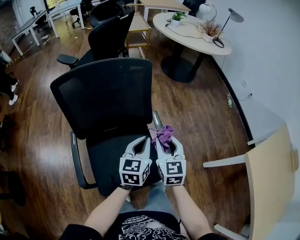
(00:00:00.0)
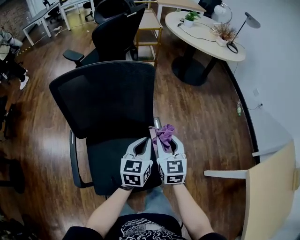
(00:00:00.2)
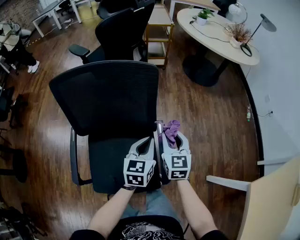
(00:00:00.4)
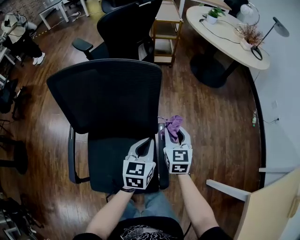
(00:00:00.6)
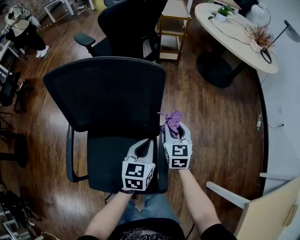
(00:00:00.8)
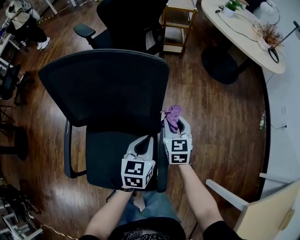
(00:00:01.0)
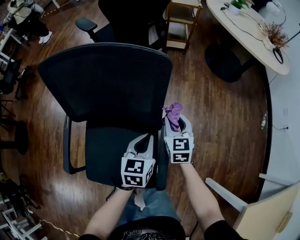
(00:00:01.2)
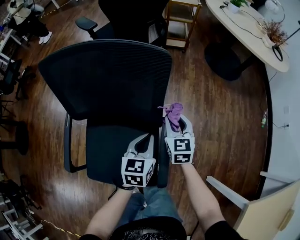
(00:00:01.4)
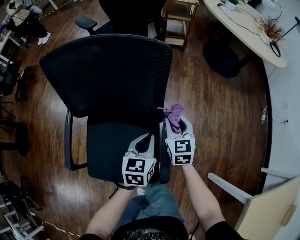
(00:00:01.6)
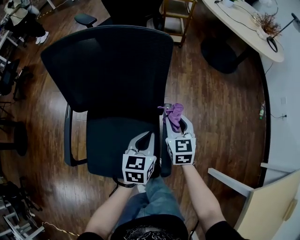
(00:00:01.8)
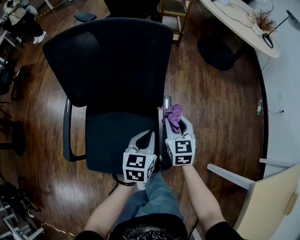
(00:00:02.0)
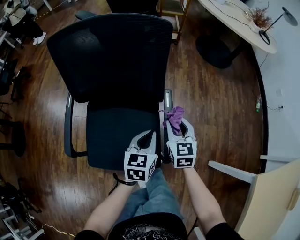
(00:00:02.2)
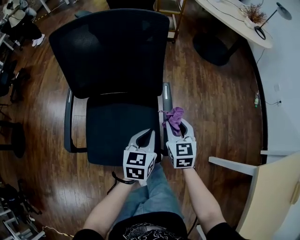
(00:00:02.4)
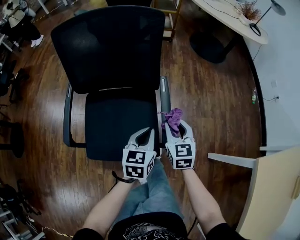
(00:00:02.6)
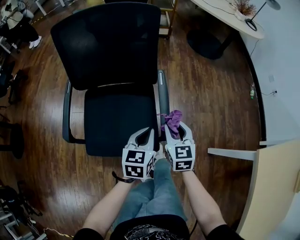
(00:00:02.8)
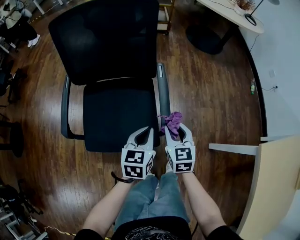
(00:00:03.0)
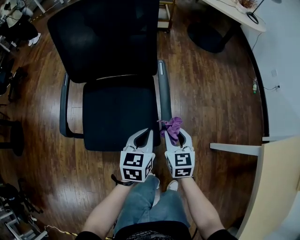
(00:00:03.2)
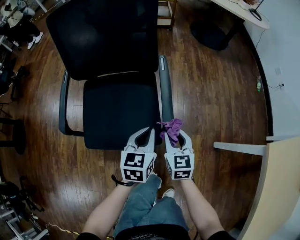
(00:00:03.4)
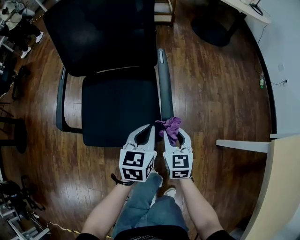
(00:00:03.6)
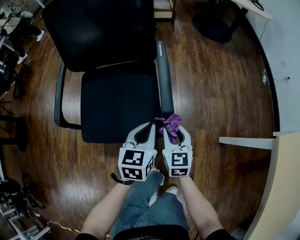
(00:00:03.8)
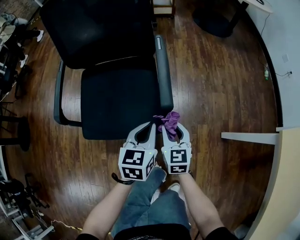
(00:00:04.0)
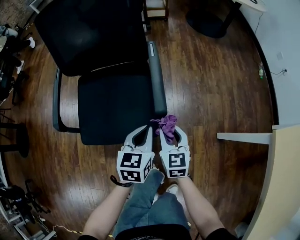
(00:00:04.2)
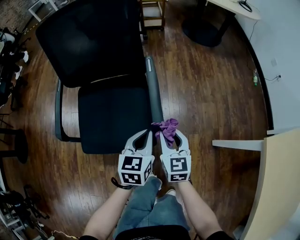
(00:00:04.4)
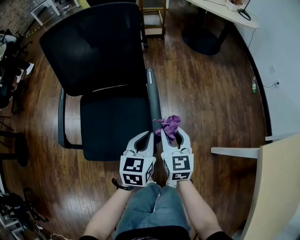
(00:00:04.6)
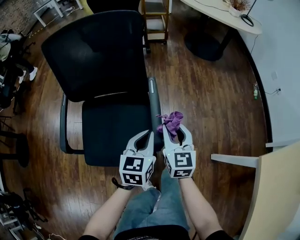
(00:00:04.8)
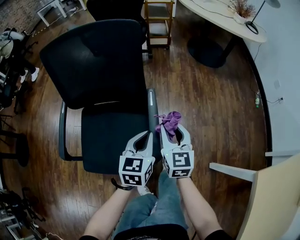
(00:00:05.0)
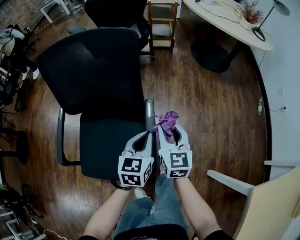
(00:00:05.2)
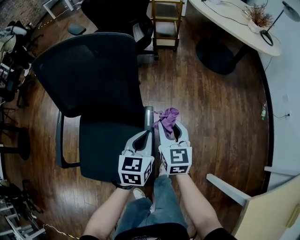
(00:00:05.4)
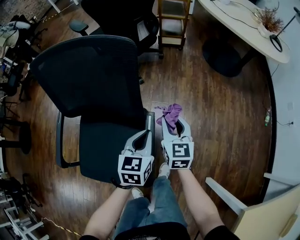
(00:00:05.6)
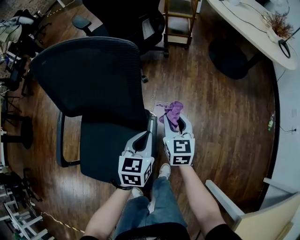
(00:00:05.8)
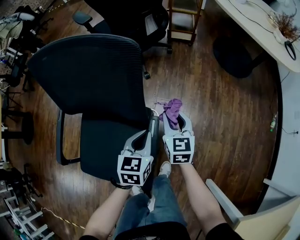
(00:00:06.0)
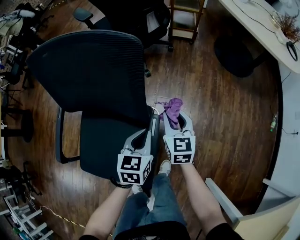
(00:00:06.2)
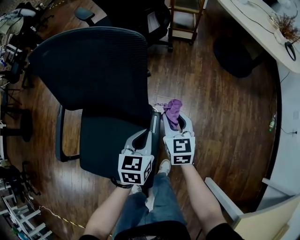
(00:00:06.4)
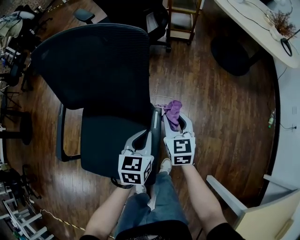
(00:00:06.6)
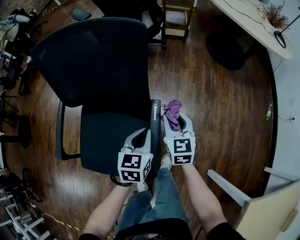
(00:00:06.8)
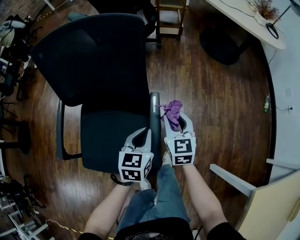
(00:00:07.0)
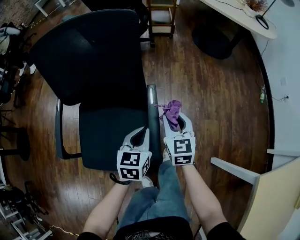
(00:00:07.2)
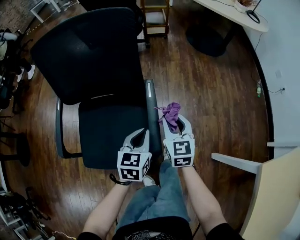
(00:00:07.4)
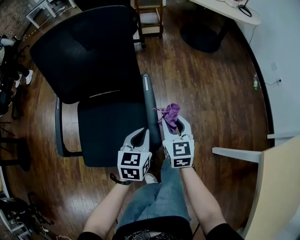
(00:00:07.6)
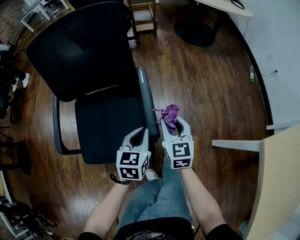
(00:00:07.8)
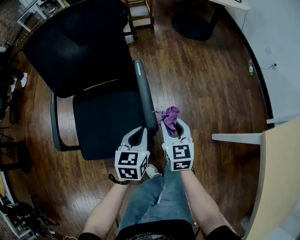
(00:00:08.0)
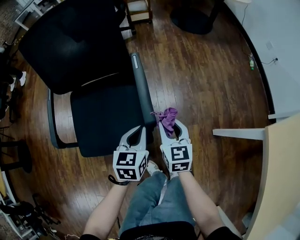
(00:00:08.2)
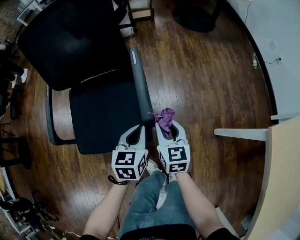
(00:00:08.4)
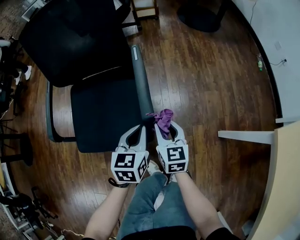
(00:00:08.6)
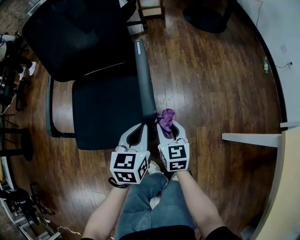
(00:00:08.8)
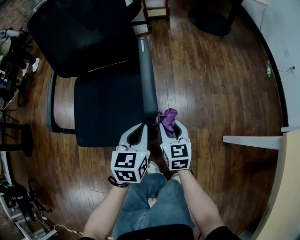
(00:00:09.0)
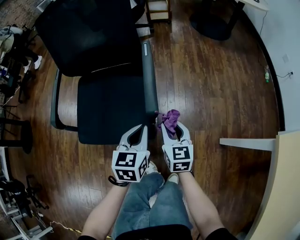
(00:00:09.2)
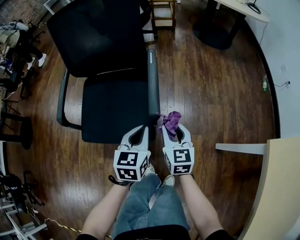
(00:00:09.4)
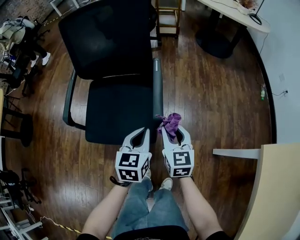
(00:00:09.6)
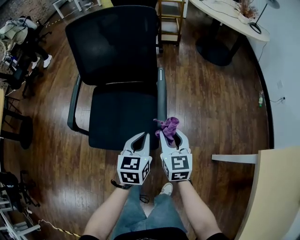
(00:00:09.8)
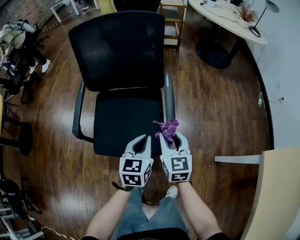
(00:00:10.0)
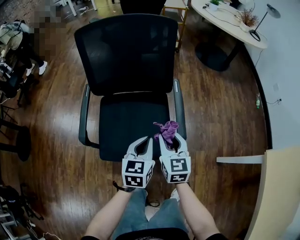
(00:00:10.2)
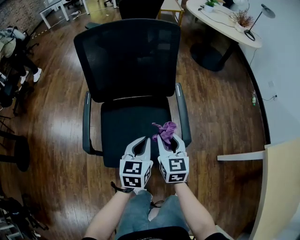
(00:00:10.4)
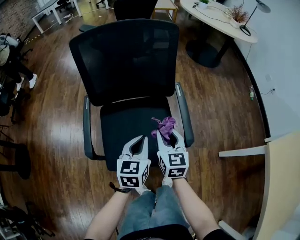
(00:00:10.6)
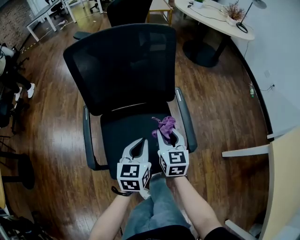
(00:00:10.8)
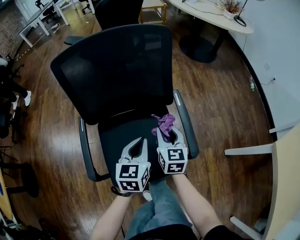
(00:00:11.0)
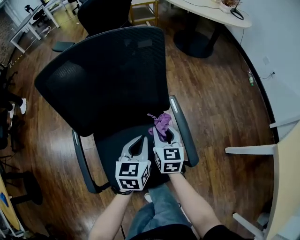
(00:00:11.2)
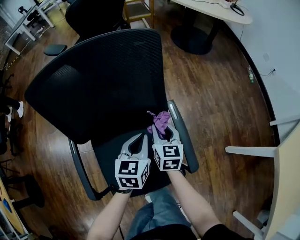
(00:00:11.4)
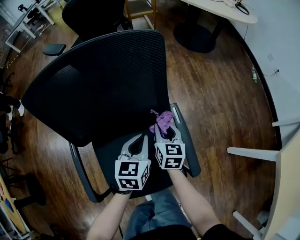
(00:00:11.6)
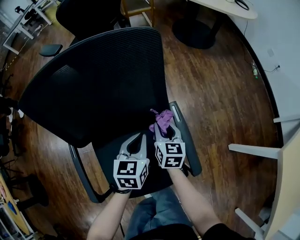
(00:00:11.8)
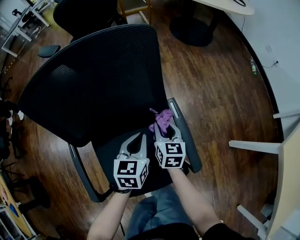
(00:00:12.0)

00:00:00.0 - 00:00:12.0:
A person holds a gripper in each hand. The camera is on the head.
00:00:00.0 - 00:00:01.6: The left gripper is displaced downward and forward by about 15 cm, and rotates roughly 20 degrees. Meanwhile the right gripper shifts approximately 20 cm forward and downward, and rotates about 20 degrees.
00:00:01.6 - 00:00:03.0: The grippers both shift backward by roughly 25 cm.
00:00:03.0 - 00:00:04.4: The right gripper reaches approximately 10 cm downward, then returns.
00:00:04.4 - 00:00:06.0: Both grippers travel together forward, about 35 cm.
00:00:06.0 - 00:00:07.6: Both grippers move backward, some 20 cm.
00:00:07.6 - 00:00:09.0: The right gripper heads downward and backward, covering about 20 cm; the left gripper is displaced backward and downward by approximately 15 cm.
00:00:09.0 - 00:00:10.4: The right gripper travels upward and to the left by about 30 cm. Meanwhile the left gripper is displaced to the left and upward by approximately 25 cm.
00:00:10.4 - 00:00:12.0: The left gripper moves forward, about 20 cm. The right gripper goes some 25 cm forward and downward, and rotates roughly 20 degrees.

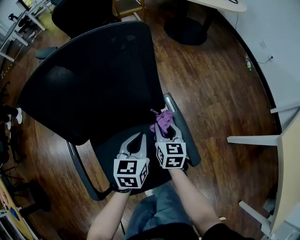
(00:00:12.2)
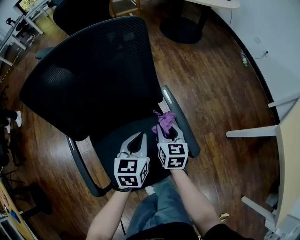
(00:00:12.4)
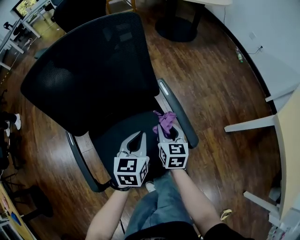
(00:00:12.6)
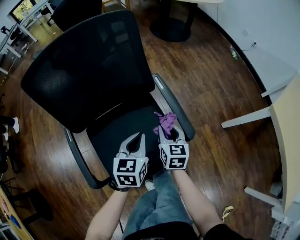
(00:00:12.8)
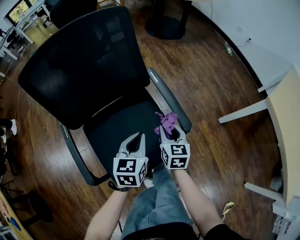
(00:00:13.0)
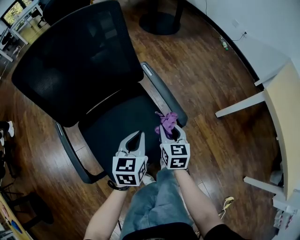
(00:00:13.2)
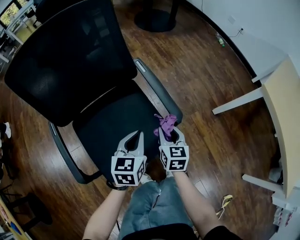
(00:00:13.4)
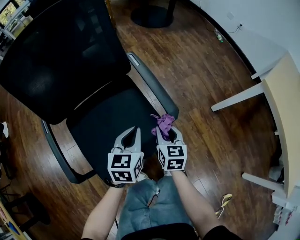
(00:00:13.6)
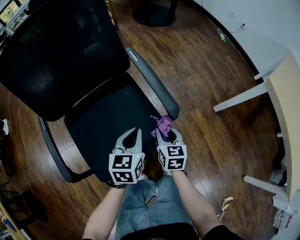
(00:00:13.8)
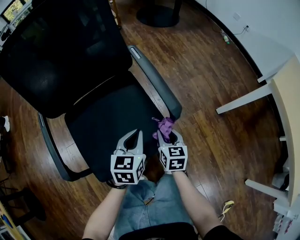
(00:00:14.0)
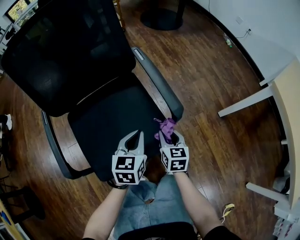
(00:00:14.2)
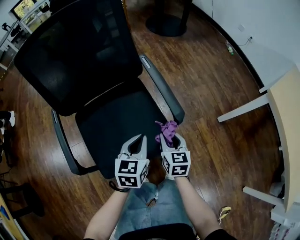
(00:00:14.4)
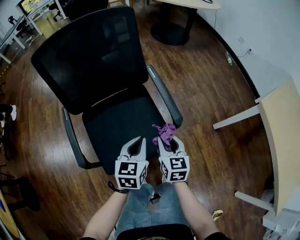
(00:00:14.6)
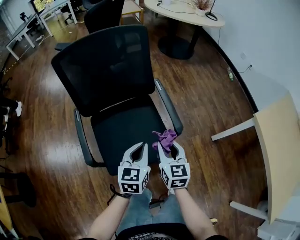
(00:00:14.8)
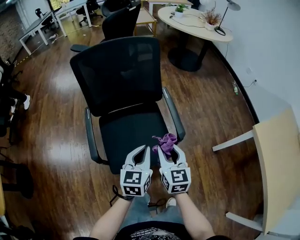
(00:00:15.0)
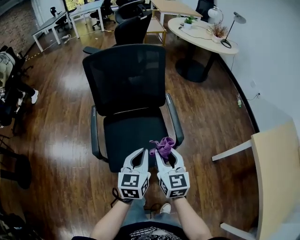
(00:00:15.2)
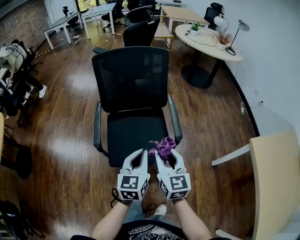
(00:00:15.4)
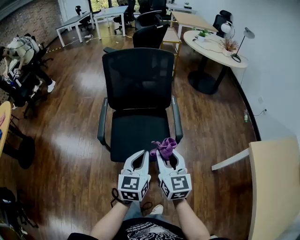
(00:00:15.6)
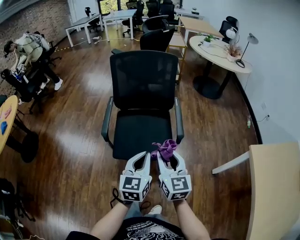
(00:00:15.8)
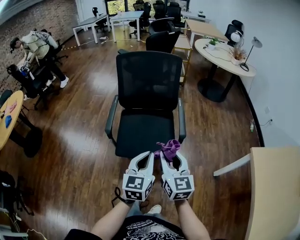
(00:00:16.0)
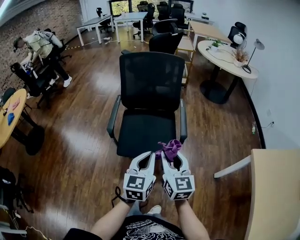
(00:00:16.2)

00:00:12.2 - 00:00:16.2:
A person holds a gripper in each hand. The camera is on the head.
00:00:12.2 - 00:00:13.6: The grippers both shift backward and to the right by some 20 cm.
00:00:13.6 - 00:00:14.8: The right gripper moves upward, some 20 cm; the left gripper moves upward and backward, roughly 15 cm.
00:00:14.8 - 00:00:16.2: The right gripper moves upward and backward, some 30 cm, and changes its angle by approximately 30 degrees. Meanwhile the left gripper heads backward and upward, covering roughly 25 cm, and turns by some 30 degrees.

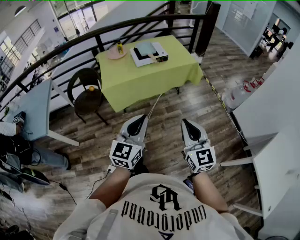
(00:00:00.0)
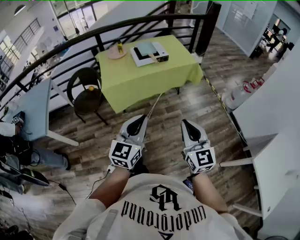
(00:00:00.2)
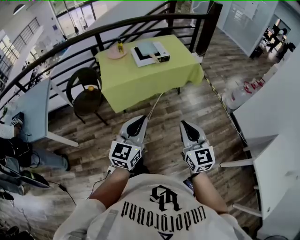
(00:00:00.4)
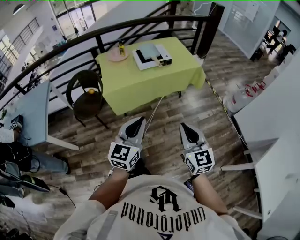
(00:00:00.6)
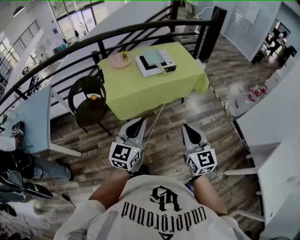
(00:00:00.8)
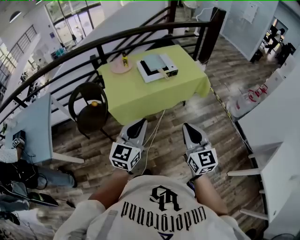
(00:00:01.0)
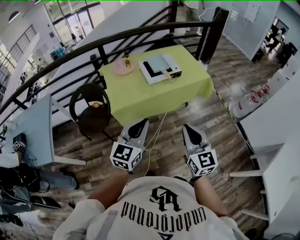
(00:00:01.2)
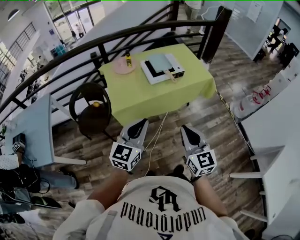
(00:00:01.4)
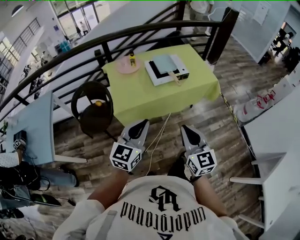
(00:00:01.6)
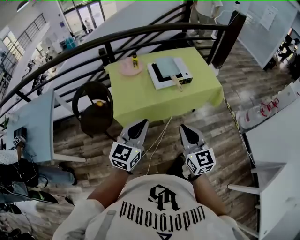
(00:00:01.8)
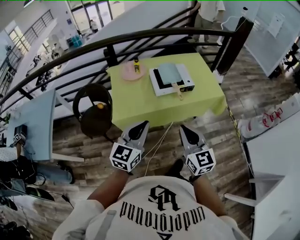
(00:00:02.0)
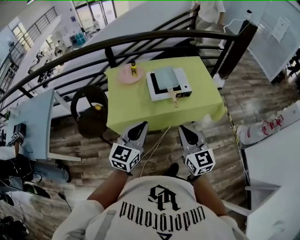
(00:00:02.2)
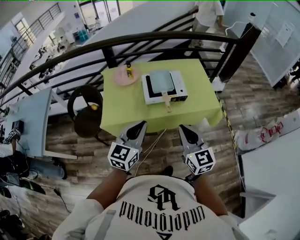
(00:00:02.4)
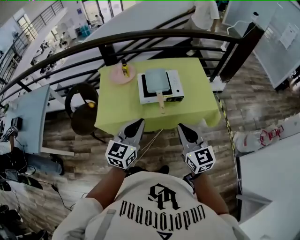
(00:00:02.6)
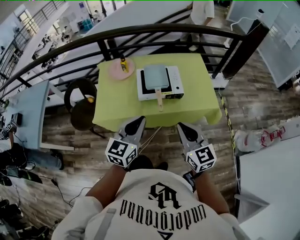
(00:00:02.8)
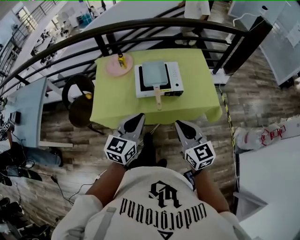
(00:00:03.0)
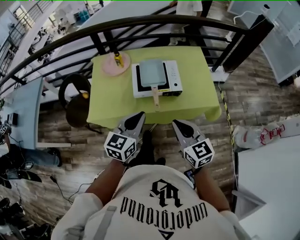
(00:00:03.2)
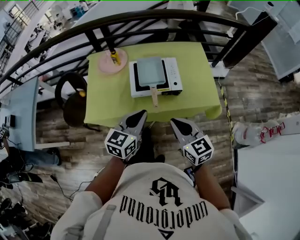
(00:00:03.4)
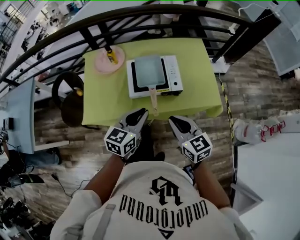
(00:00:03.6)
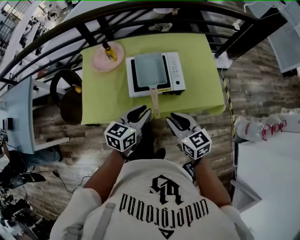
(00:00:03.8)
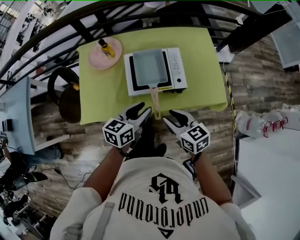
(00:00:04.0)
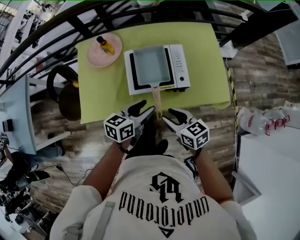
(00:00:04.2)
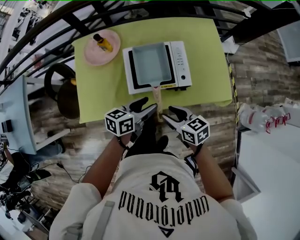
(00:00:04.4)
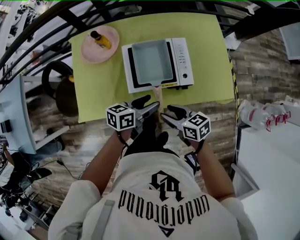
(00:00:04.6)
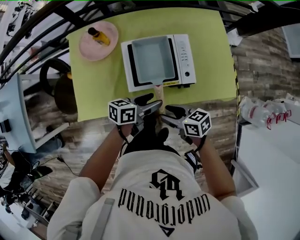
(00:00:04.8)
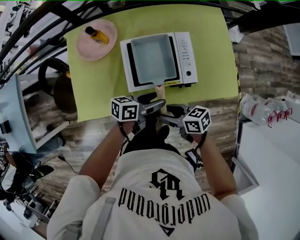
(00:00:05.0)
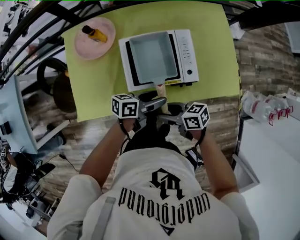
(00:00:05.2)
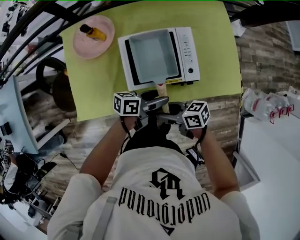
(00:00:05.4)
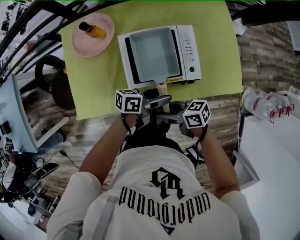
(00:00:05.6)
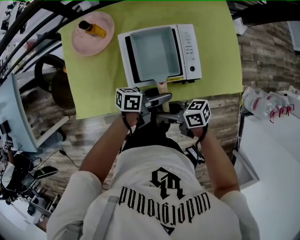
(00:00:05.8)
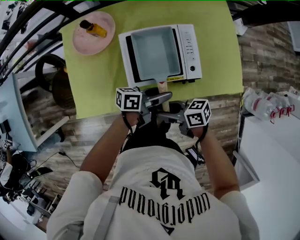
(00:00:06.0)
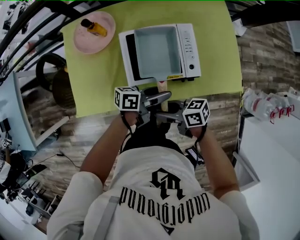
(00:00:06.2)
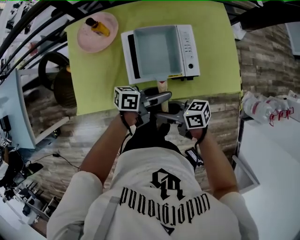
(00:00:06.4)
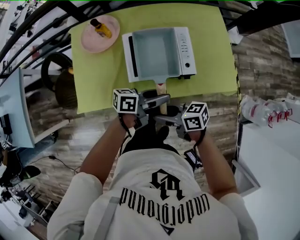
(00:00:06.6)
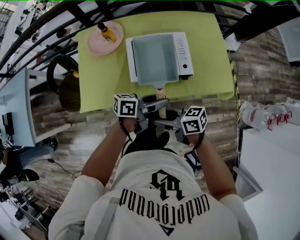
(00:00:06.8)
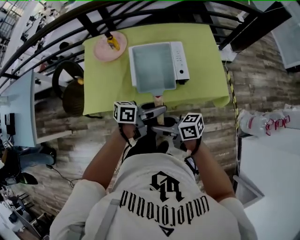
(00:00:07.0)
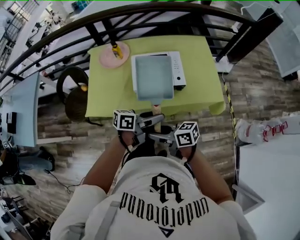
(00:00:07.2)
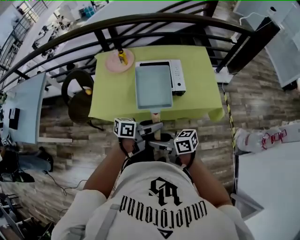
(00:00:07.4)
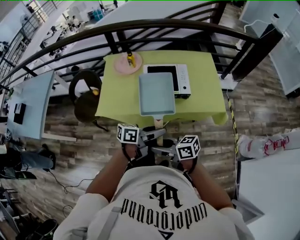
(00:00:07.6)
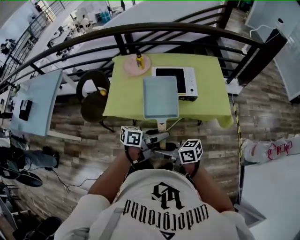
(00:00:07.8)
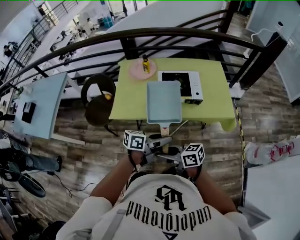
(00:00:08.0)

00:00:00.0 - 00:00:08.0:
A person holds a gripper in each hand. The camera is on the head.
00:00:00.0 - 00:00:01.6: Both grippers travel together forward and to the left, approximately 30 cm.
00:00:01.6 - 00:00:03.2: The grippers both shift forward and to the right by roughly 35 cm. The right gripper turns by approximately 30 degrees.
00:00:03.2 - 00:00:04.8: Both grippers move downward, roughly 25 cm. The left gripper changes its angle by about 50 degrees, and opens up. Meanwhile the right gripper changes its angle by approximately 50 degrees, and opens.
00:00:04.8 - 00:00:06.4: There are only small adjustments of the grippers.
00:00:06.4 - 00:00:08.0: The right gripper shifts by about 30 cm, while the left gripper moves approximately 30 cm.
